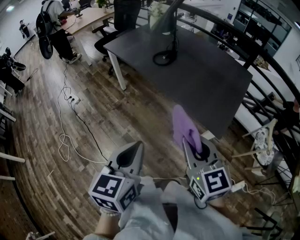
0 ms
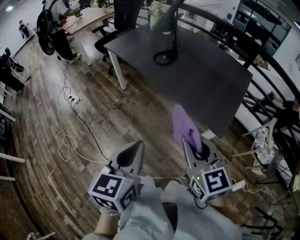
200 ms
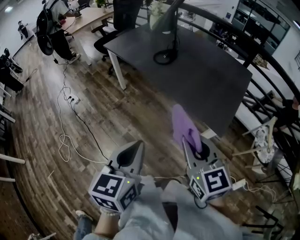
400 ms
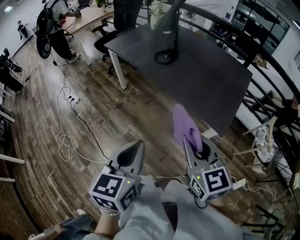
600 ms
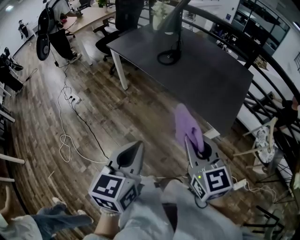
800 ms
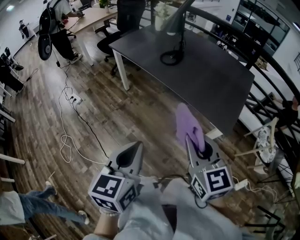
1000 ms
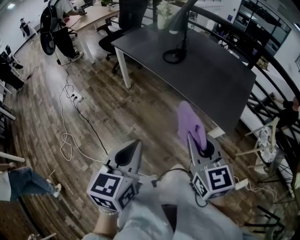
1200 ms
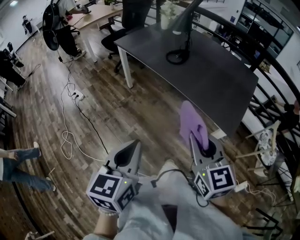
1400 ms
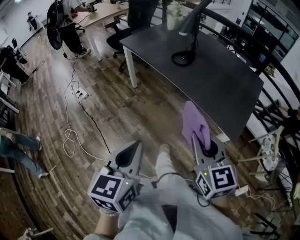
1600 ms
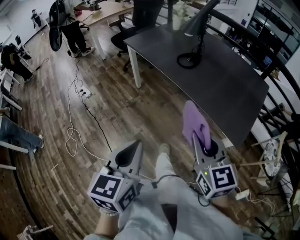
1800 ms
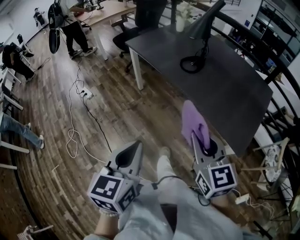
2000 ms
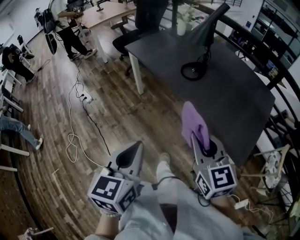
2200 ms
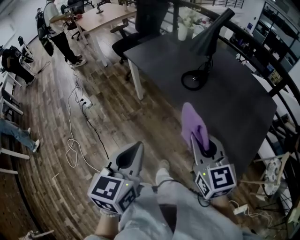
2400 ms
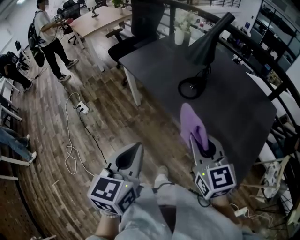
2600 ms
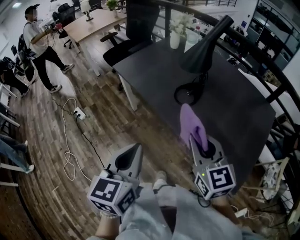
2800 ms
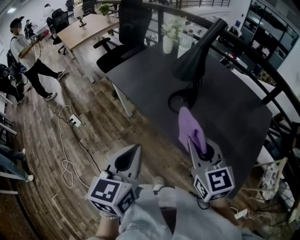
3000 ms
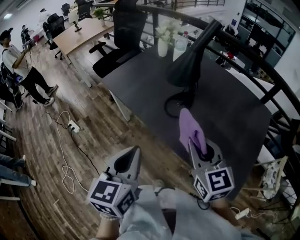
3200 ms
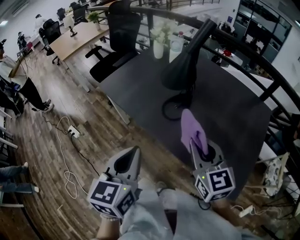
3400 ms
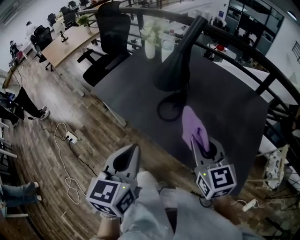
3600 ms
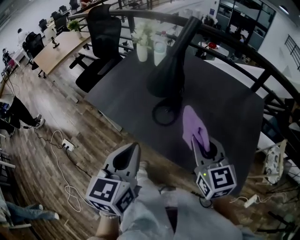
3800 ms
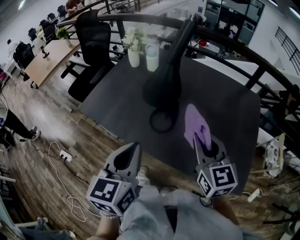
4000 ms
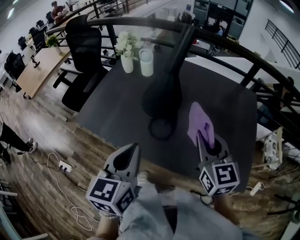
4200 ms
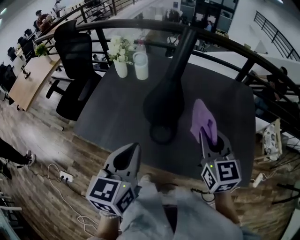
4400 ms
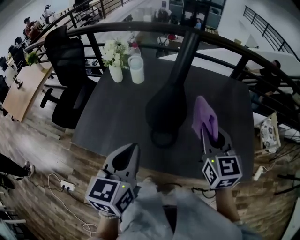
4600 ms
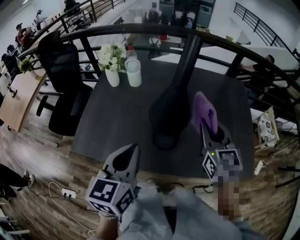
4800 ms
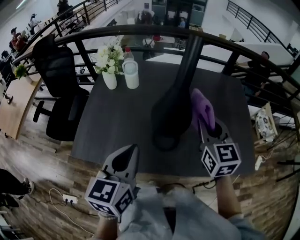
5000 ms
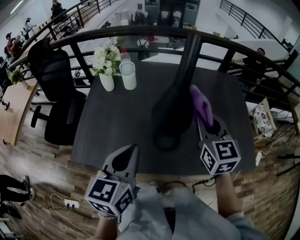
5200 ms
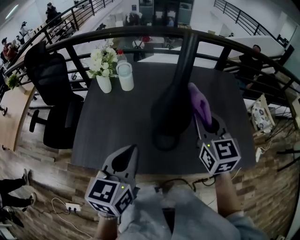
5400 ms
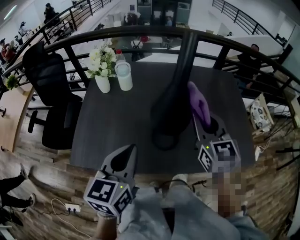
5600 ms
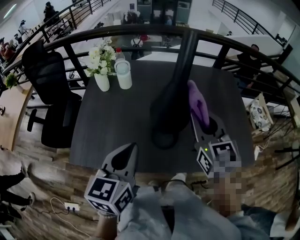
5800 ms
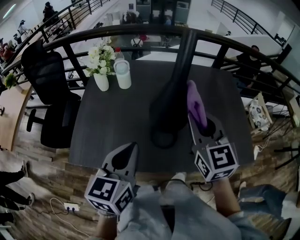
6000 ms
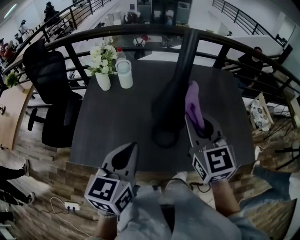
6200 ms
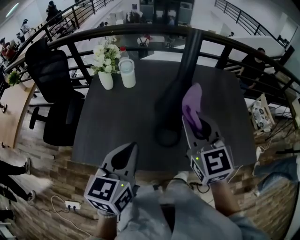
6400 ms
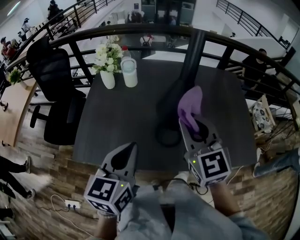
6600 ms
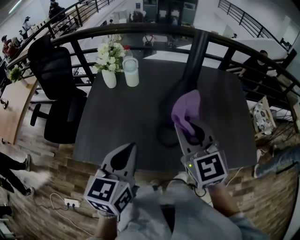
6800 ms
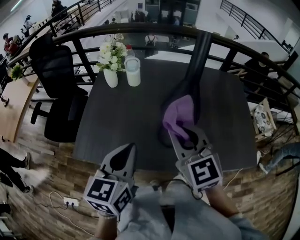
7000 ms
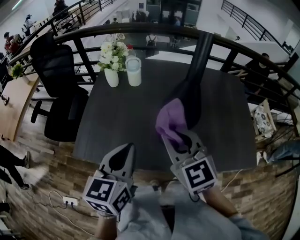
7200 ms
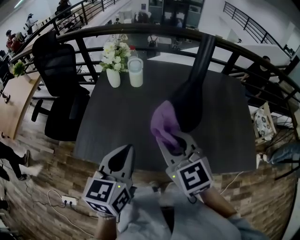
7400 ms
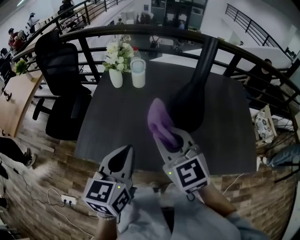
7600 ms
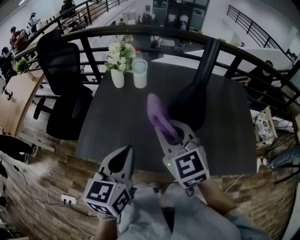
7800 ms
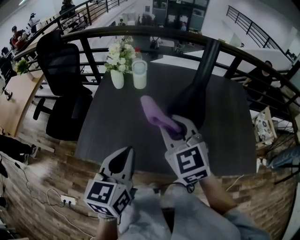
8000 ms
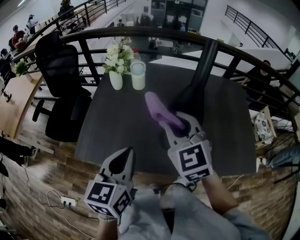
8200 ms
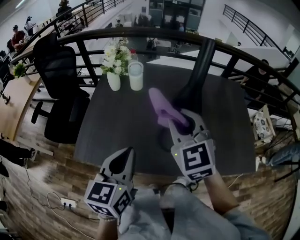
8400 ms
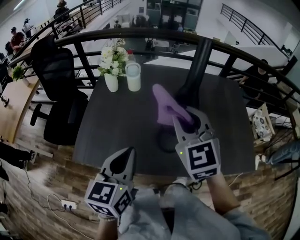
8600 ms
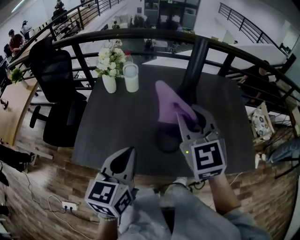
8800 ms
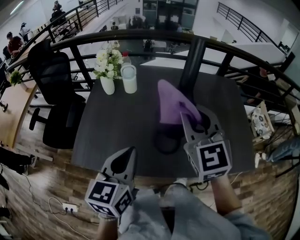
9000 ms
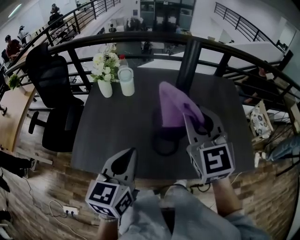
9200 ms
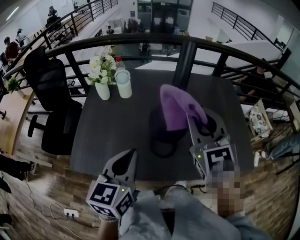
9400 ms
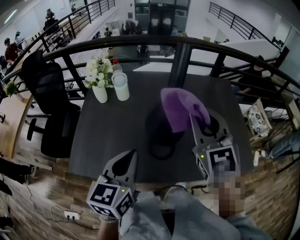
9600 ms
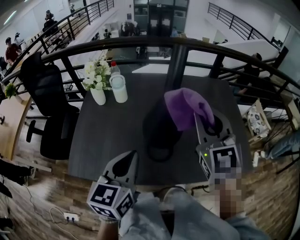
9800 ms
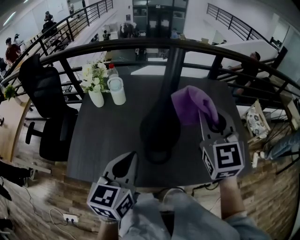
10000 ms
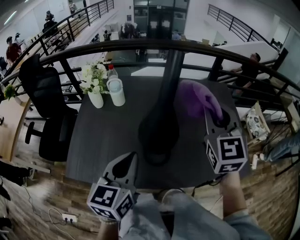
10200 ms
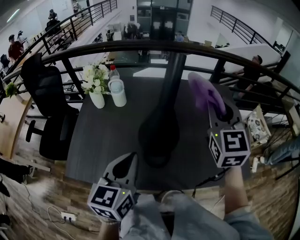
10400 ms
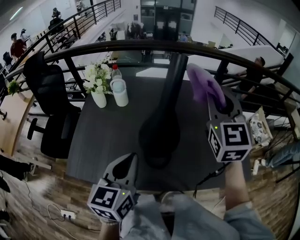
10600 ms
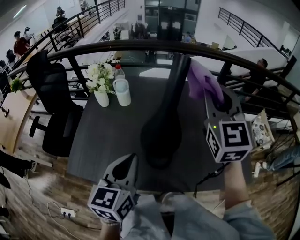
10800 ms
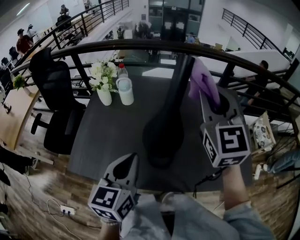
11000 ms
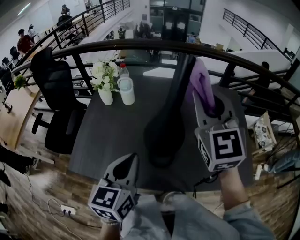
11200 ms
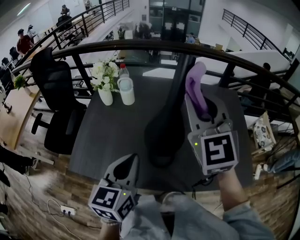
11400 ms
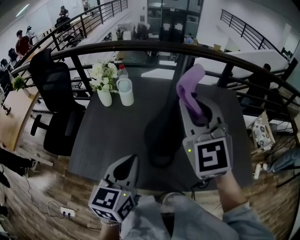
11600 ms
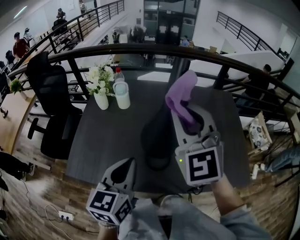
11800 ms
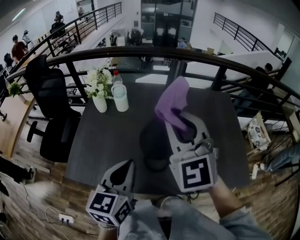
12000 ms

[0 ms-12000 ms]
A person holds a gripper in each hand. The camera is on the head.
0 ms to 1600 ms: The two grippers go approximately 10 cm to the left.
1600 ms to 3000 ms: The grippers both shift forward by approximately 35 cm.
3000 ms to 4400 ms: The right gripper changes place by roughly 20 cm, and swivels some 30 degrees; the left gripper changes place by about 25 cm, and turns by approximately 30 degrees.
4400 ms to 6000 ms: Both grippers travel together to the left, about 10 cm.
6000 ms to 7600 ms: The right gripper shifts approximately 15 cm to the left, and swivels some 20 degrees. Meanwhile the left gripper moves to the left, some 5 cm.
7600 ms to 9000 ms: The right gripper is displaced to the right, upward and forward by some 15 cm, and turns by some 20 degrees.
9000 ms to 10400 ms: The left gripper heads to the right, covering about 5 cm, while the right gripper is displaced to the right and forward by some 15 cm.
10400 ms to 12000 ms: The right gripper moves to the left, about 15 cm, and swivels roughly 20 degrees.

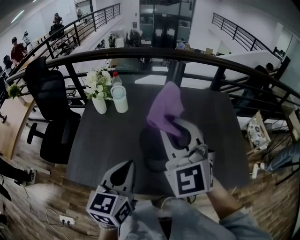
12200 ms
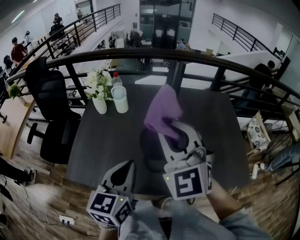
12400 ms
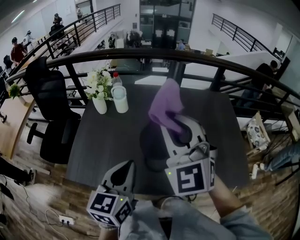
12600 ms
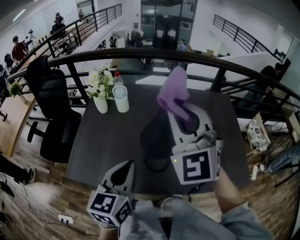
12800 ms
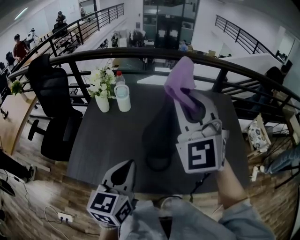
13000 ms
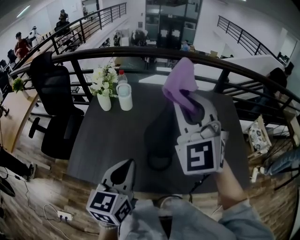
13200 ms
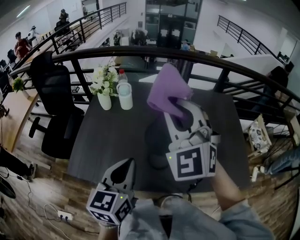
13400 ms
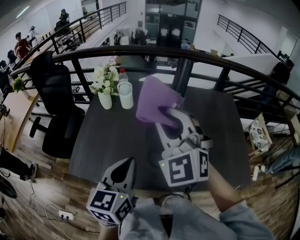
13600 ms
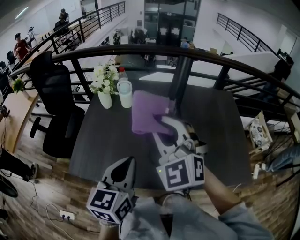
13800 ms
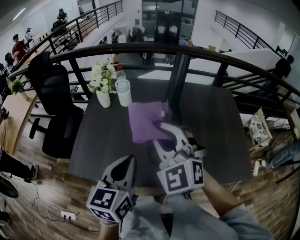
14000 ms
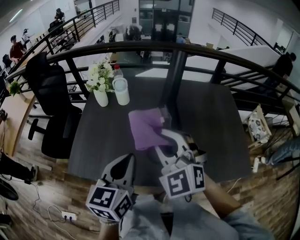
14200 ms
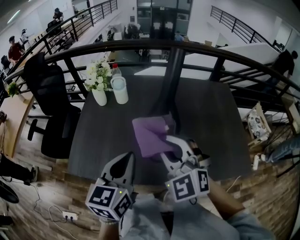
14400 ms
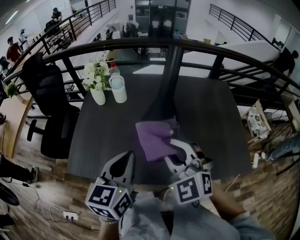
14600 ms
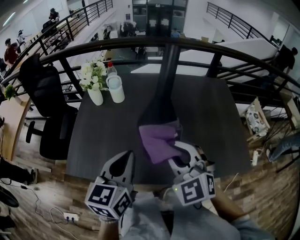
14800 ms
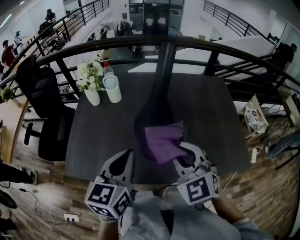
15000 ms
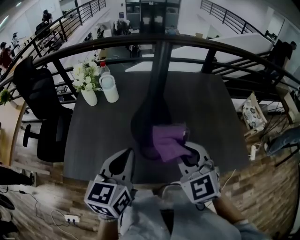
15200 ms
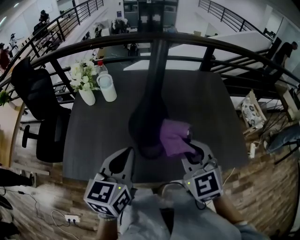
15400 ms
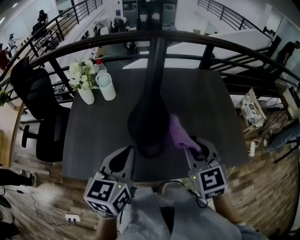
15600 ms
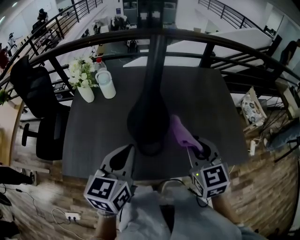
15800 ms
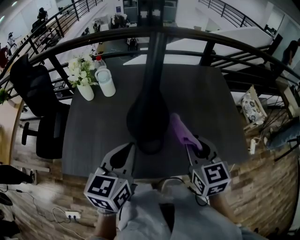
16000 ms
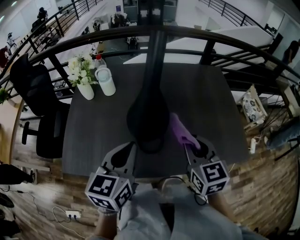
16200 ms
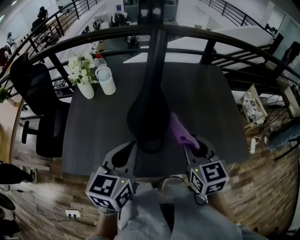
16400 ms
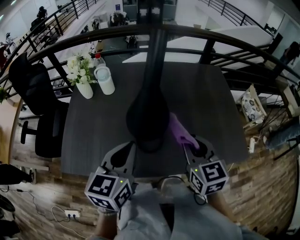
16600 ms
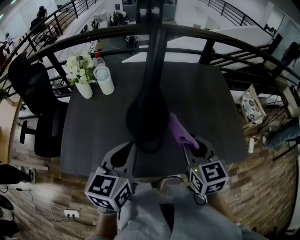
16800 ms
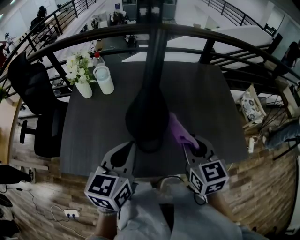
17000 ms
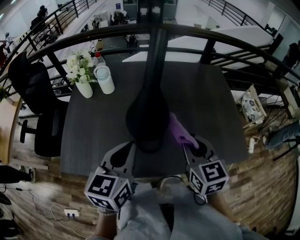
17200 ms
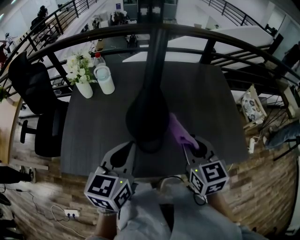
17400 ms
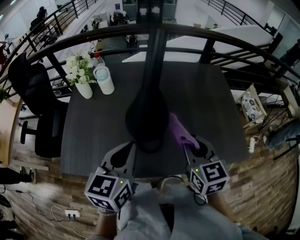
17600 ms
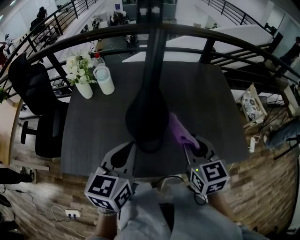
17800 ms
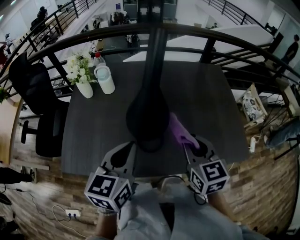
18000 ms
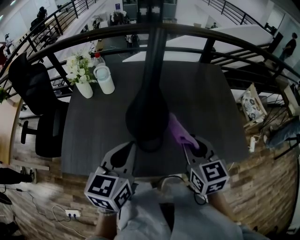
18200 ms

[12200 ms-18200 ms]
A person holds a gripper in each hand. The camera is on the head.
12200 ms to 13800 ms: The right gripper reaches about 5 cm upward, then returns.
13800 ms to 15200 ms: The right gripper is displaced to the right, downward and backward by some 15 cm, and rotates some 30 degrees.
15200 ms to 16600 ms: The right gripper moves to the right, some 5 cm, and rotates roughly 30 degrees.
16600 ms to 18200 ms: Both grippers stay put.

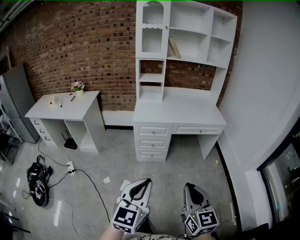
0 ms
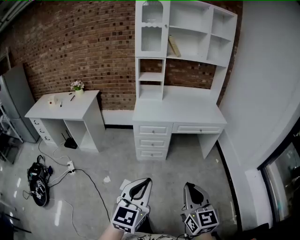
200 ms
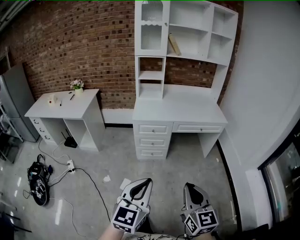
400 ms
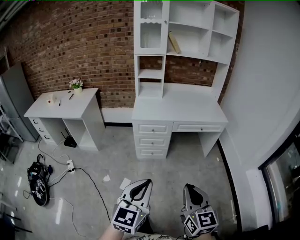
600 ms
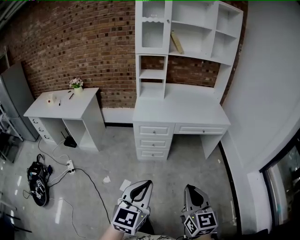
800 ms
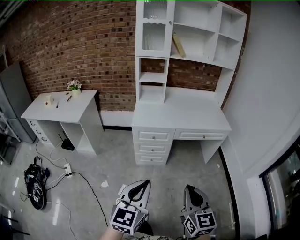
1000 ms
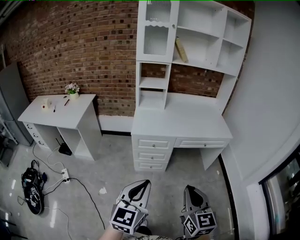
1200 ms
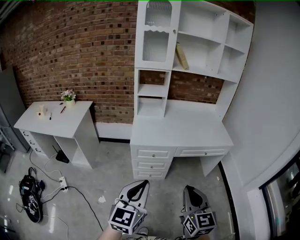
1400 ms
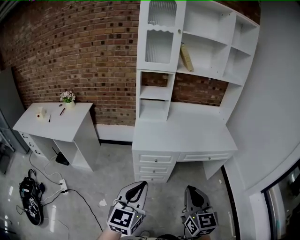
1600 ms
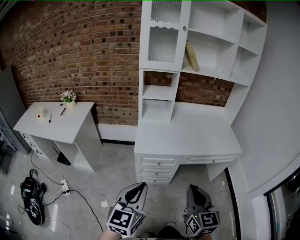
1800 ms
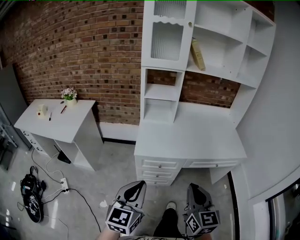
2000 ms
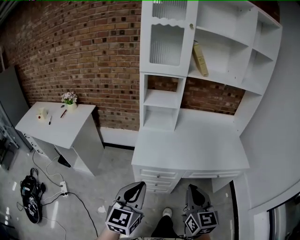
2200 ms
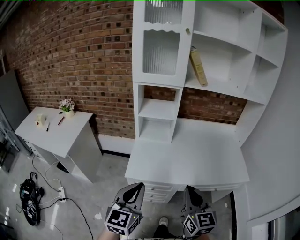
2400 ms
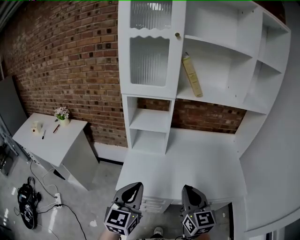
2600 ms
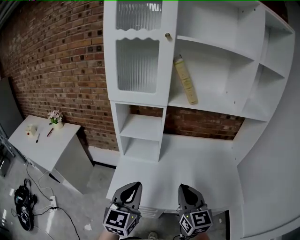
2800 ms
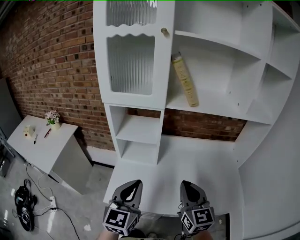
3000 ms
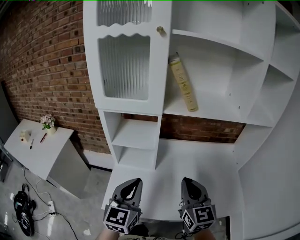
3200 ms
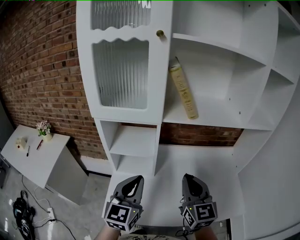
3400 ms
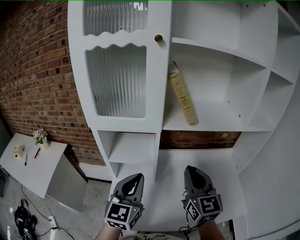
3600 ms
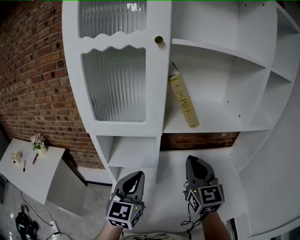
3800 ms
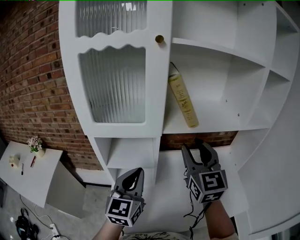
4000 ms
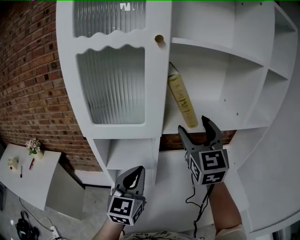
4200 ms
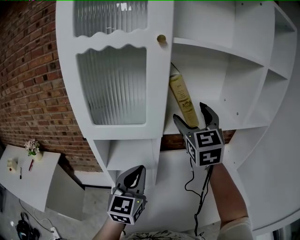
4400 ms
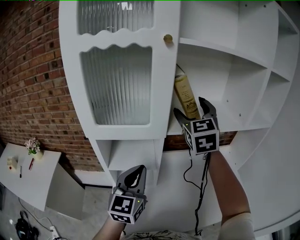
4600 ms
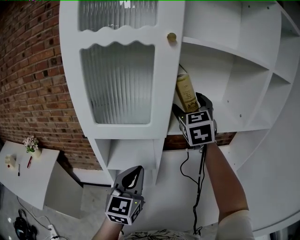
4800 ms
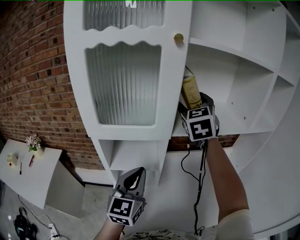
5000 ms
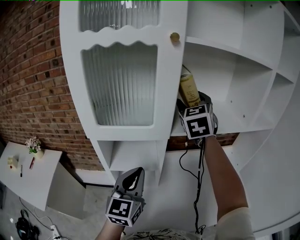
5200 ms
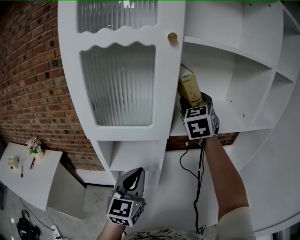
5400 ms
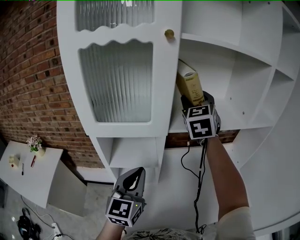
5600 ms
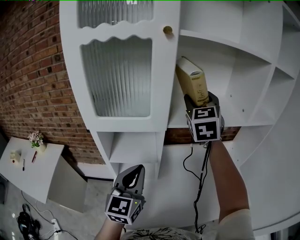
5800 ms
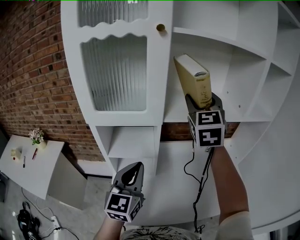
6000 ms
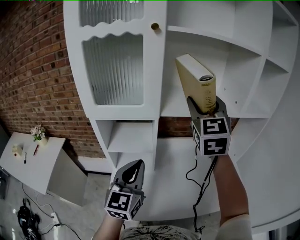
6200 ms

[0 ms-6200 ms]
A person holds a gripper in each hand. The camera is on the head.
0 ms to 1600 ms: Both grippers travel together forward, roughly 30 cm.
1600 ms to 3200 ms: The pair of grippers is taken forward, approximately 60 cm.
3200 ms to 4600 ms: The right gripper shifts roughly 35 cm forward and upward, changes its angle by some 30 degrees, and opens its fingers, while the left gripper is displaced forward by roughly 15 cm.
4600 ms to 6200 ms: The right gripper goes about 10 cm backward and to the right, and closes up; the left gripper is displaced backward by roughly 5 cm.
